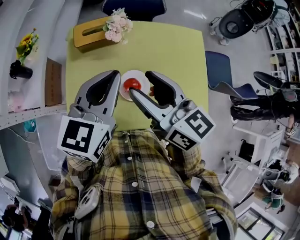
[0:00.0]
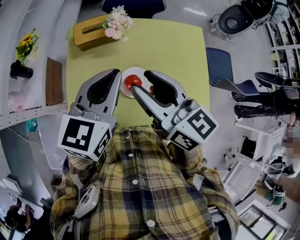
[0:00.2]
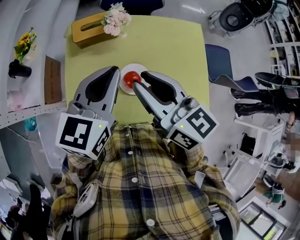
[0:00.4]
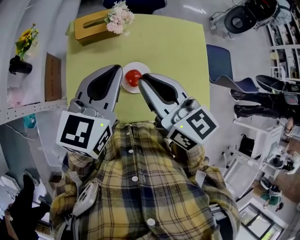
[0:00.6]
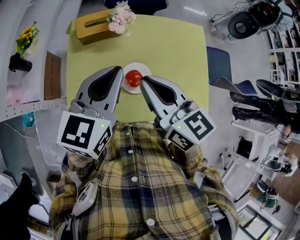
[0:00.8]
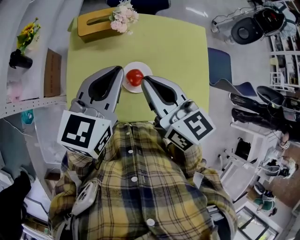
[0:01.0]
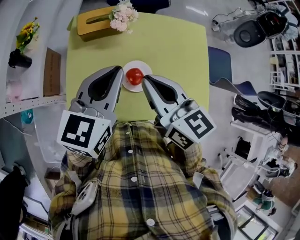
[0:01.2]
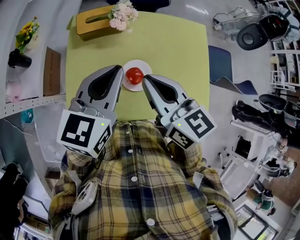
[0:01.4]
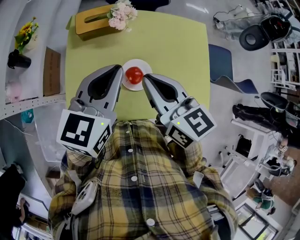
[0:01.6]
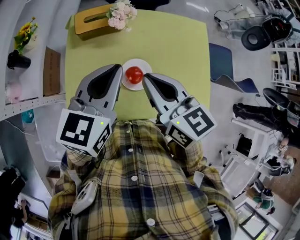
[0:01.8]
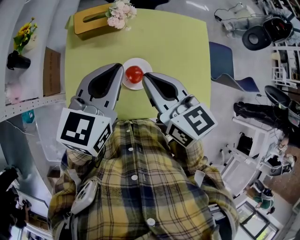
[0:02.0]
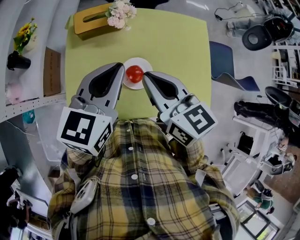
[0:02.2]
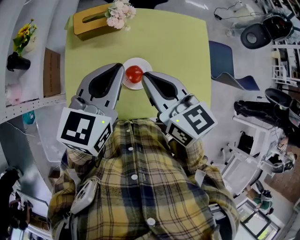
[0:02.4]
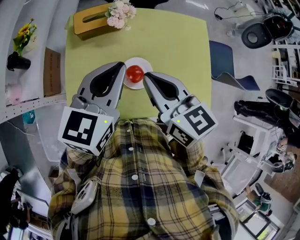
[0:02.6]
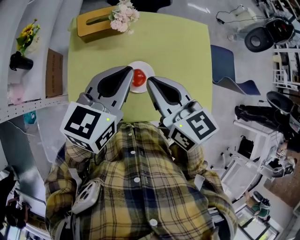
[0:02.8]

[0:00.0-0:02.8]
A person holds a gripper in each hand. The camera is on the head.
0:00.0 to 0:01.4: The right gripper closes its fingers.
0:01.4 to 0:02.8: The grippers make only small movements.

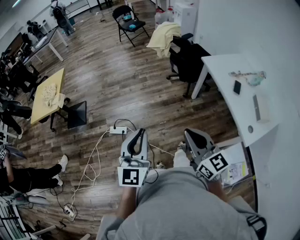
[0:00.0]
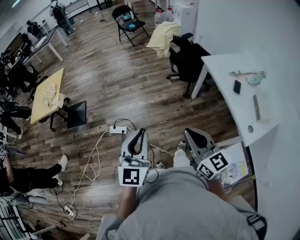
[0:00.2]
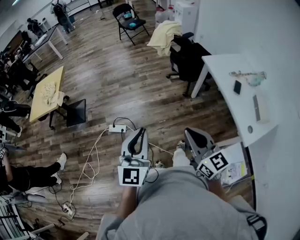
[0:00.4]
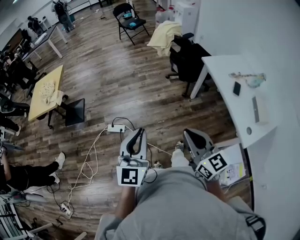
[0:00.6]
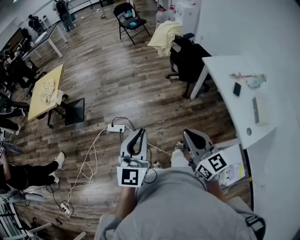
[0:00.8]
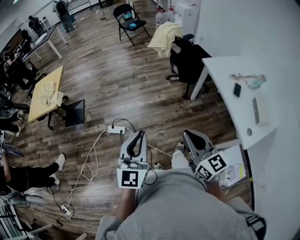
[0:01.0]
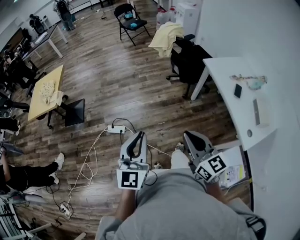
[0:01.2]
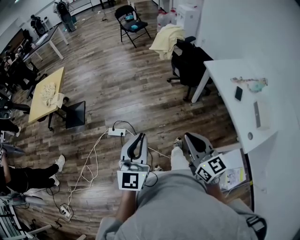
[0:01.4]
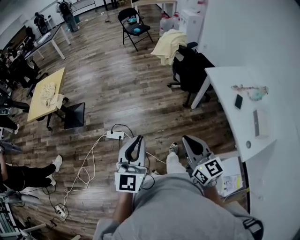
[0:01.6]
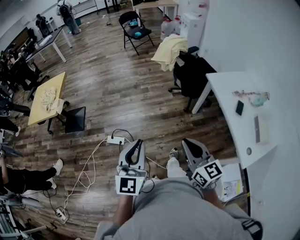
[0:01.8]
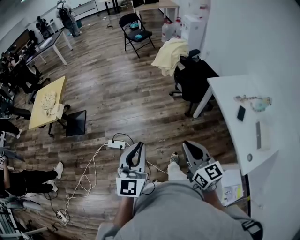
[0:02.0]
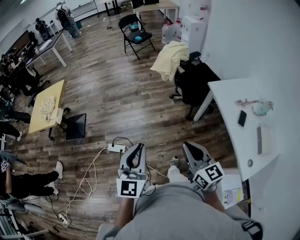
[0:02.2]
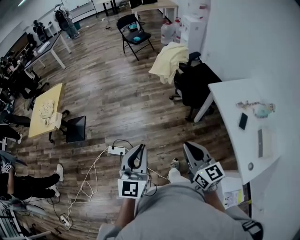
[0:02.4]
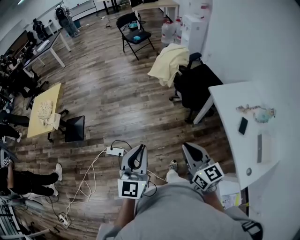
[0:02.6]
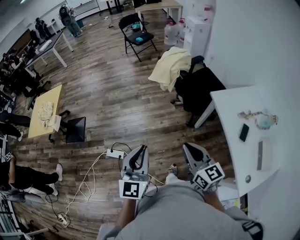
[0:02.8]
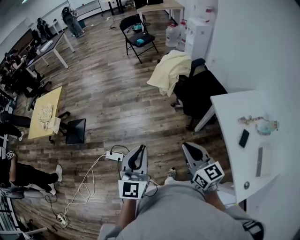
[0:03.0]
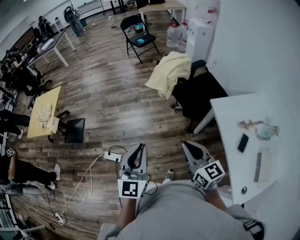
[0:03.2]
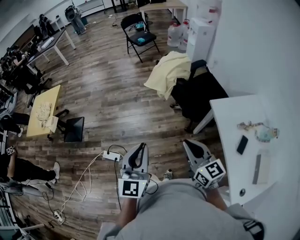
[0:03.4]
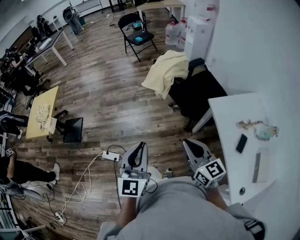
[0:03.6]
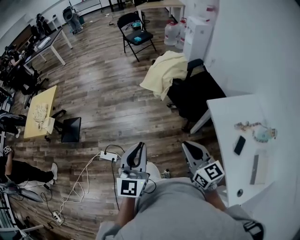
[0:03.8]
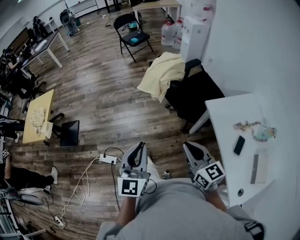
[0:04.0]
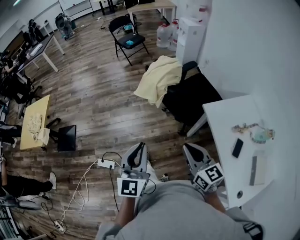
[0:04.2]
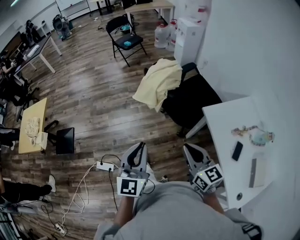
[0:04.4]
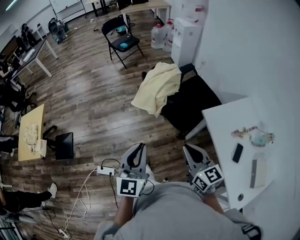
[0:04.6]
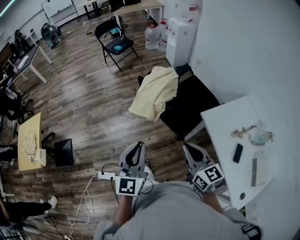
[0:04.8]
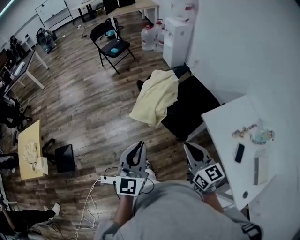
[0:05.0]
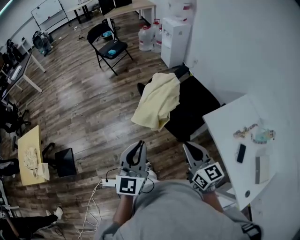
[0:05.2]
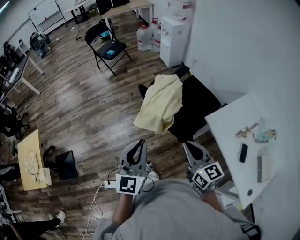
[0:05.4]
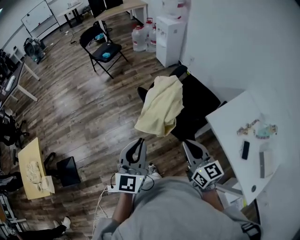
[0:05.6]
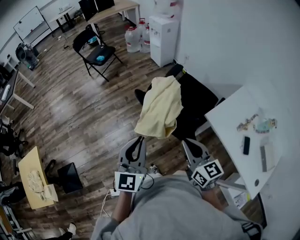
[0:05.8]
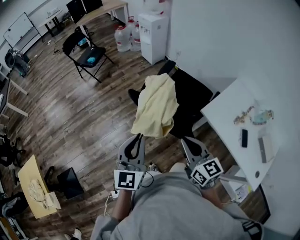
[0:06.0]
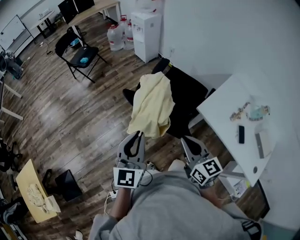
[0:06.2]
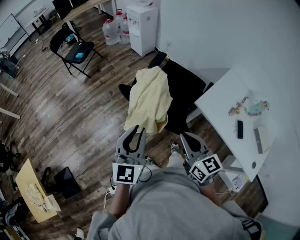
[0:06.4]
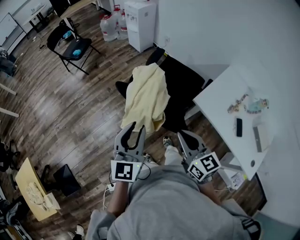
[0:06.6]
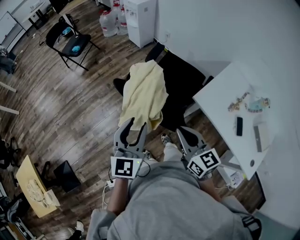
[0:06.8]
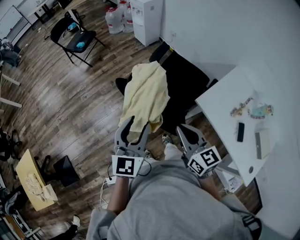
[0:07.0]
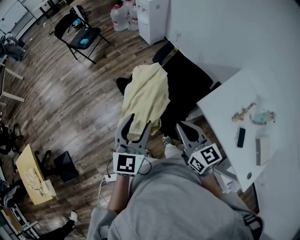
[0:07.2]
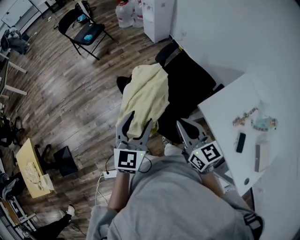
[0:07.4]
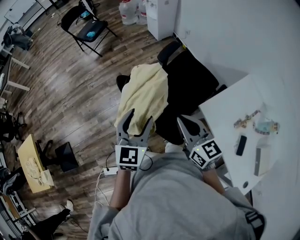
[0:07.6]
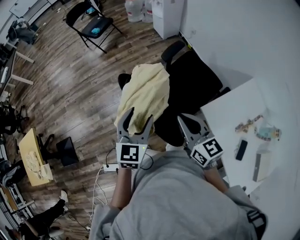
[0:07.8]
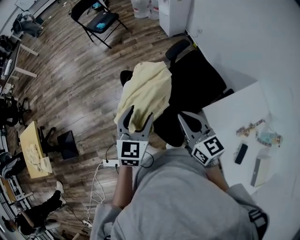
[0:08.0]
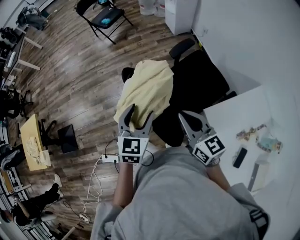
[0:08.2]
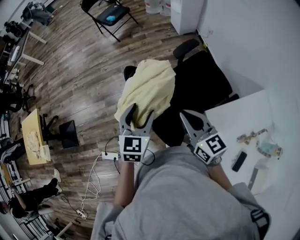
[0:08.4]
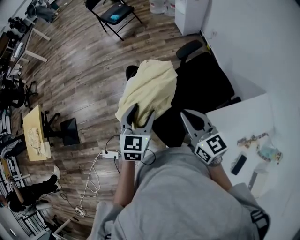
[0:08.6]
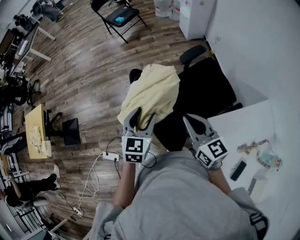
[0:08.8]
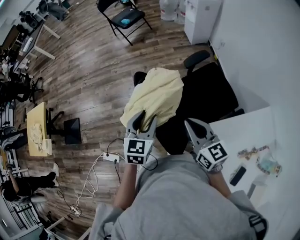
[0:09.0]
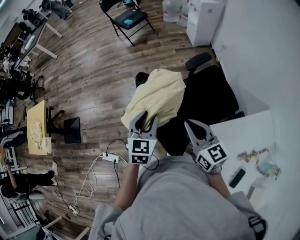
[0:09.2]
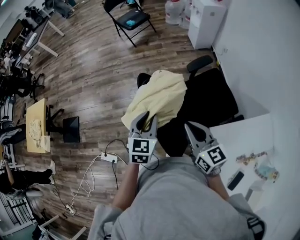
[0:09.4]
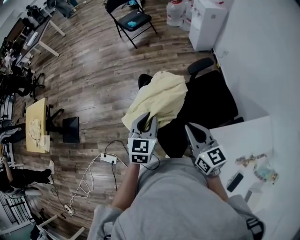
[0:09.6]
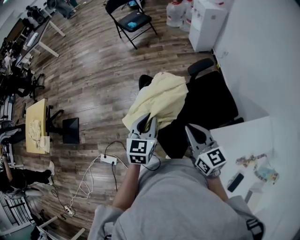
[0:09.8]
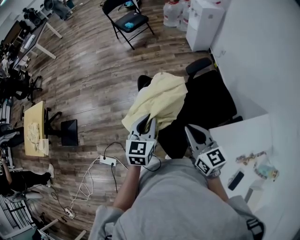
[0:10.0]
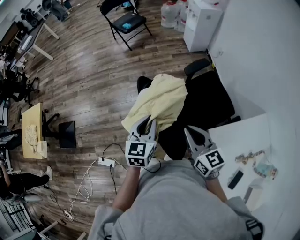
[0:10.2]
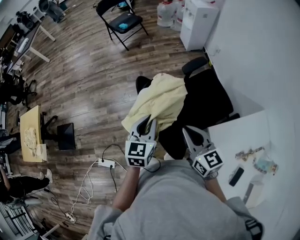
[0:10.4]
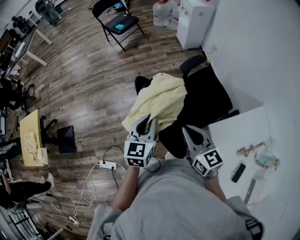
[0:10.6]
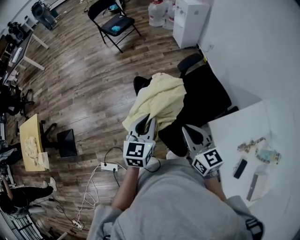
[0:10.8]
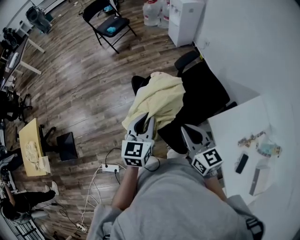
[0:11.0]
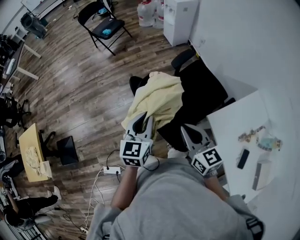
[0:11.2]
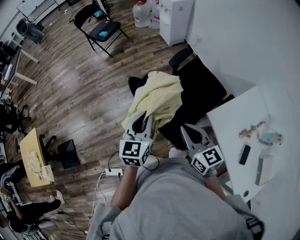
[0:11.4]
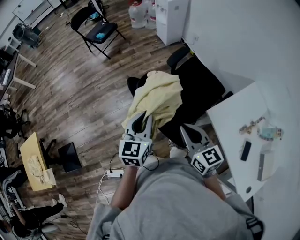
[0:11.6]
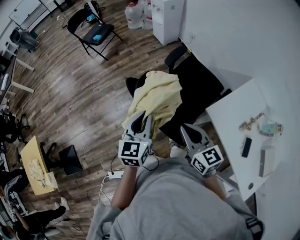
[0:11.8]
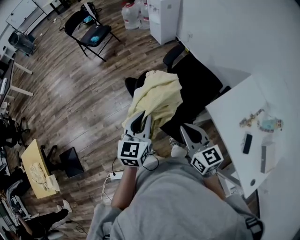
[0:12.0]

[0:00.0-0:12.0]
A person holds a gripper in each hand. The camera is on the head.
0:00.0 to 0:01.6: The right gripper shifts by approximately 5 cm.
0:01.6 to 0:03.0: The two grippers go roughly 25 cm forward and to the right.
0:03.0 to 0:04.4: Both grippers travel together forward and to the right, approximately 15 cm.
0:04.4 to 0:06.0: Both grippers travel together forward, roughly 20 cm. The right gripper rotates approximately 20 degrees. Meanwhile the left gripper turns by some 20 degrees.
0:06.0 to 0:07.6: The left gripper shifts some 15 cm forward, to the right and downward, and opens its fingers. The right gripper travels forward and to the right by some 15 cm.
0:07.6 to 0:09.0: The right gripper shifts by approximately 5 cm. Meanwhile the left gripper shifts about 5 cm downward, and rotates some 20 degrees.
0:09.0 to 0:10.4: The left gripper closes up.
0:10.4 to 0:12.0: The right gripper moves backward, some 5 cm.

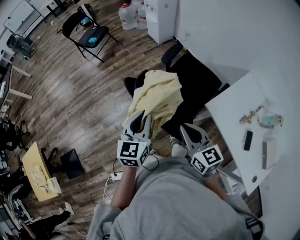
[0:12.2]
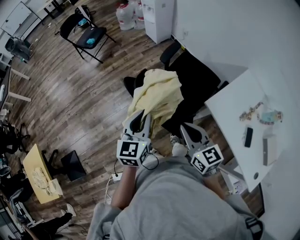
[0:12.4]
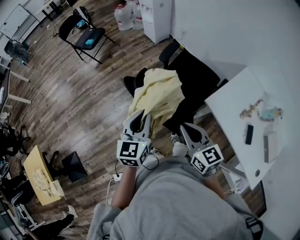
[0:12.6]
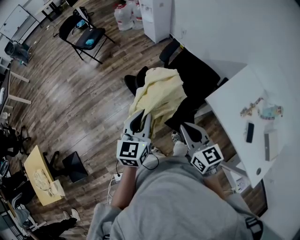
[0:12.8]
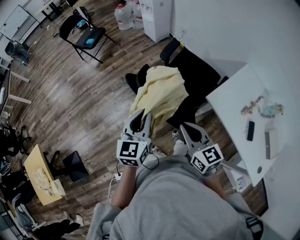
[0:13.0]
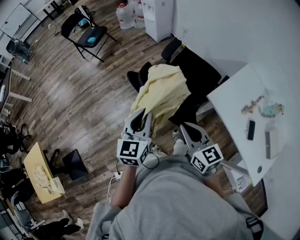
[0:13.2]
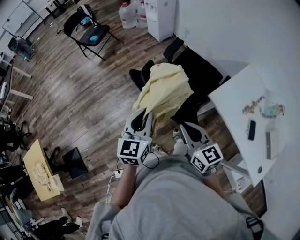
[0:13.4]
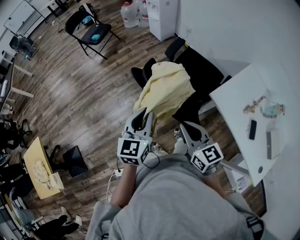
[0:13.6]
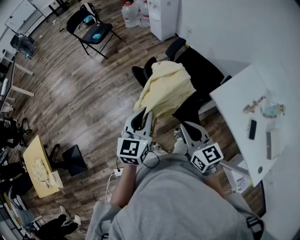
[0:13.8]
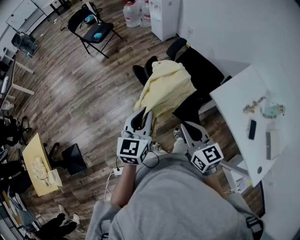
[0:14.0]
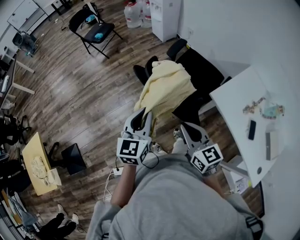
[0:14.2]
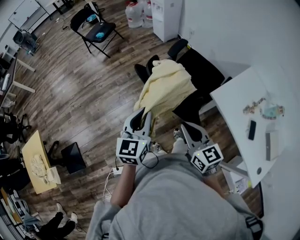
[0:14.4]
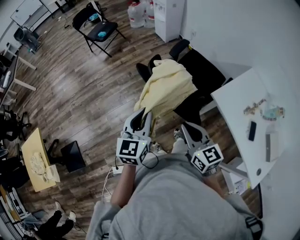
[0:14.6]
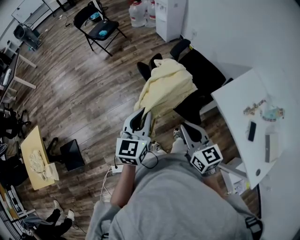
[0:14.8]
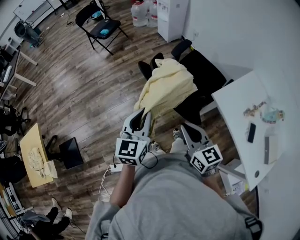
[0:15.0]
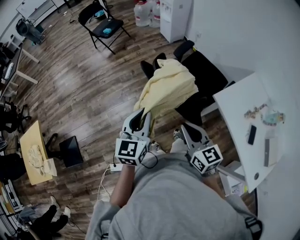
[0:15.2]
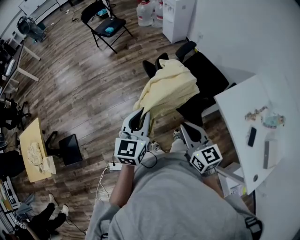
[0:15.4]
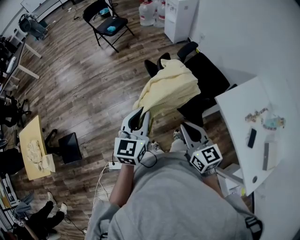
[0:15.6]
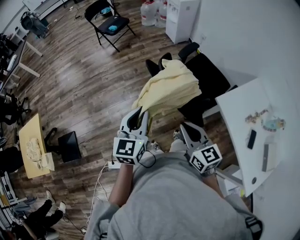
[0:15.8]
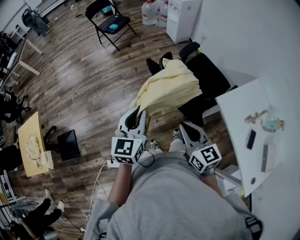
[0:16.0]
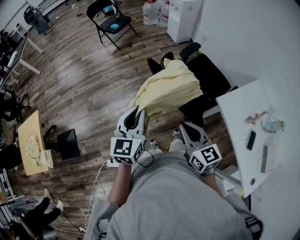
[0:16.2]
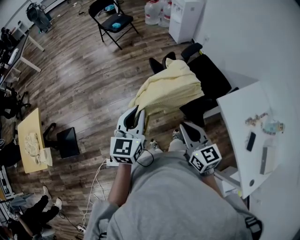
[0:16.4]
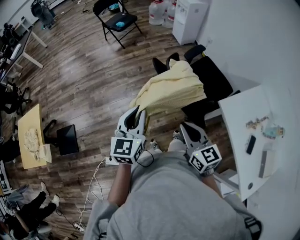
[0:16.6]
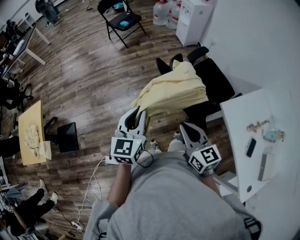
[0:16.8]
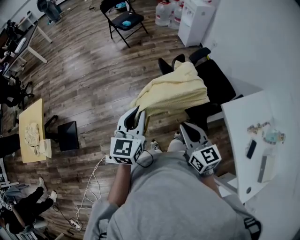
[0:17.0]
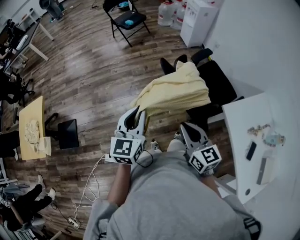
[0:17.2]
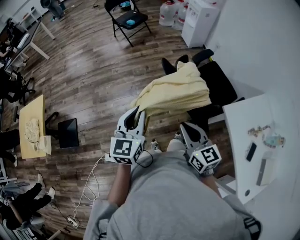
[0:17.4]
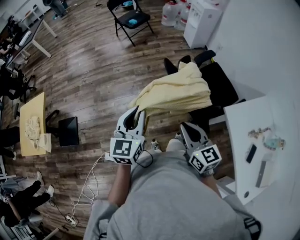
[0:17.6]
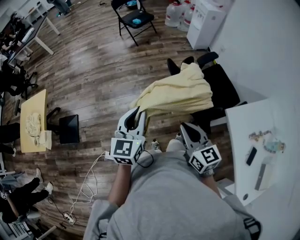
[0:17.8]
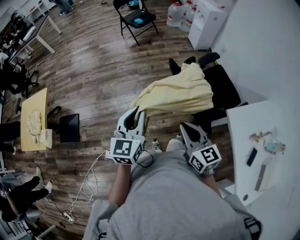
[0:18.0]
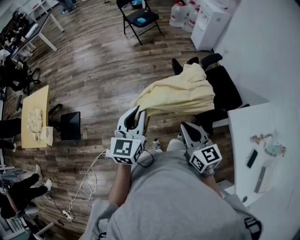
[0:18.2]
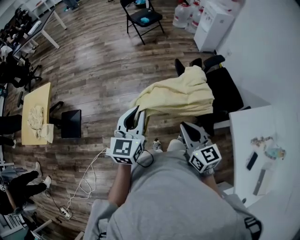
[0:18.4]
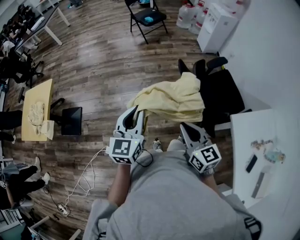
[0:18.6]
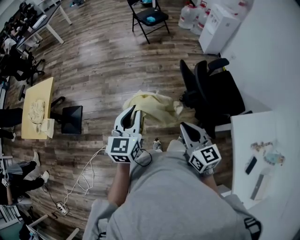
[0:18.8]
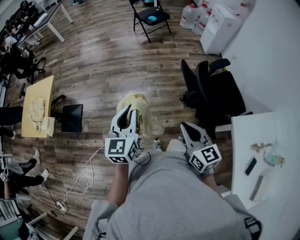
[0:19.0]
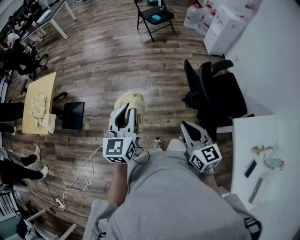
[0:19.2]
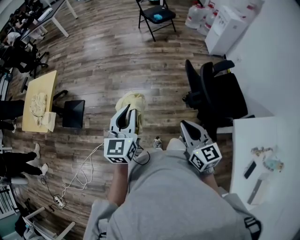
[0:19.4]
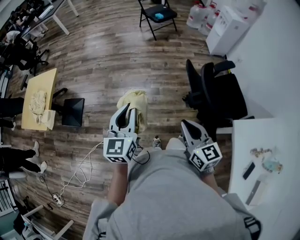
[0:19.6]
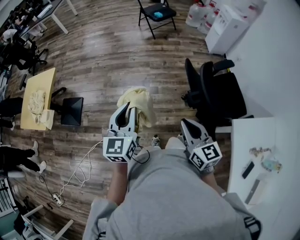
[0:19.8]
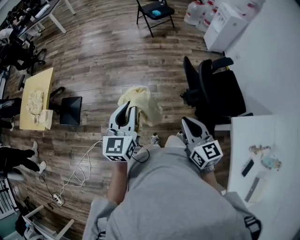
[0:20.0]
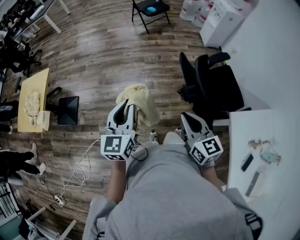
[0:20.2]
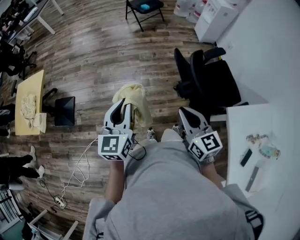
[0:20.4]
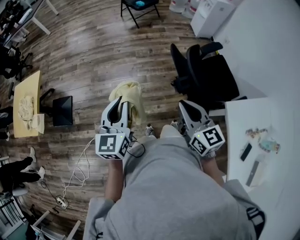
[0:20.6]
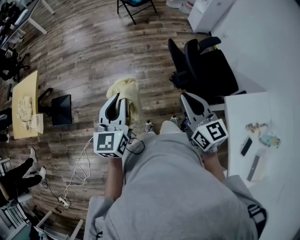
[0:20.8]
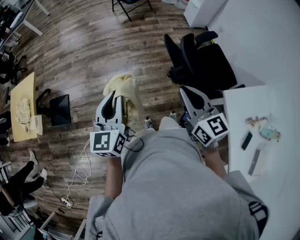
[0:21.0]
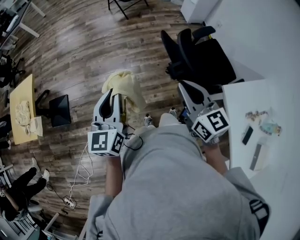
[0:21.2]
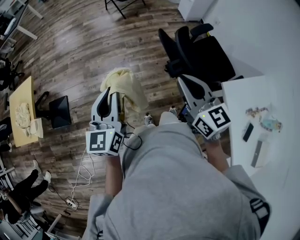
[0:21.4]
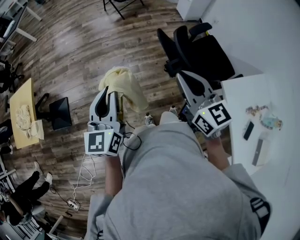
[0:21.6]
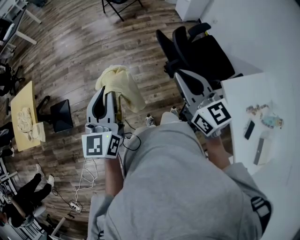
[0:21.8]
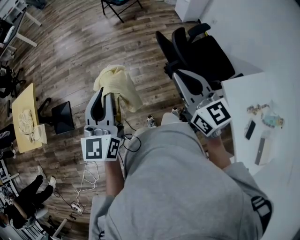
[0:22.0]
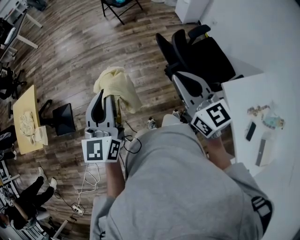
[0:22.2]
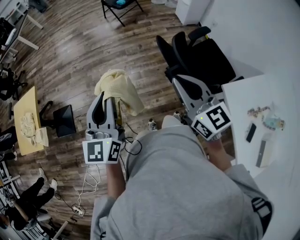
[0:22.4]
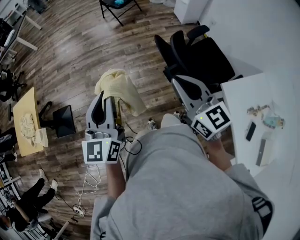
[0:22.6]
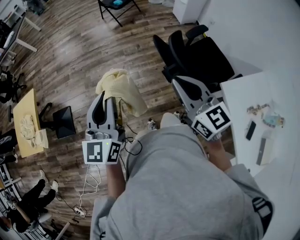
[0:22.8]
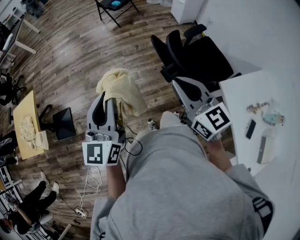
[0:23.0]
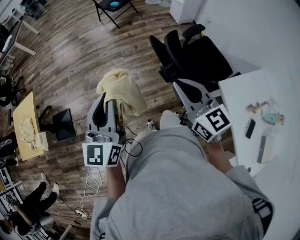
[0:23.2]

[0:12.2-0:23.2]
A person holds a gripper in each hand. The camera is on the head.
0:12.2 to 0:13.8: The two grippers go about 5 cm backward.
0:13.8 to 0:15.4: The left gripper ends up some 5 cm from where it was.
0:15.4 to 0:17.0: The left gripper travels to the left by approximately 5 cm.
0:17.0 to 0:18.4: The left gripper goes about 5 cm to the left.
0:18.4 to 0:20.0: The left gripper goes about 5 cm to the left.
0:20.0 to 0:21.6: The right gripper moves upward, some 10 cm.
0:21.6 to 0:23.2: The left gripper moves some 5 cm.
